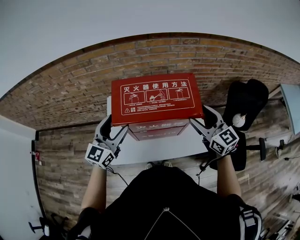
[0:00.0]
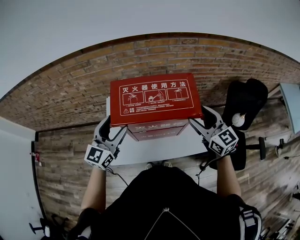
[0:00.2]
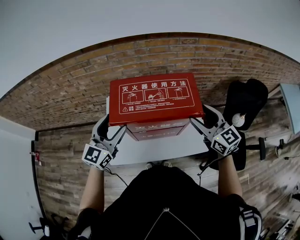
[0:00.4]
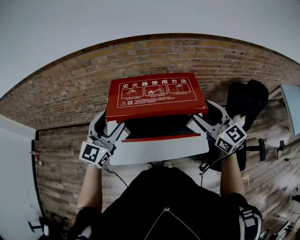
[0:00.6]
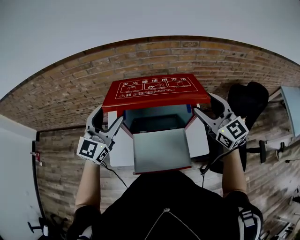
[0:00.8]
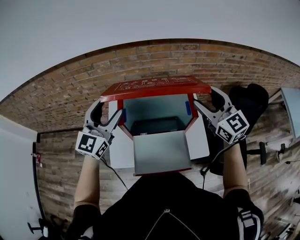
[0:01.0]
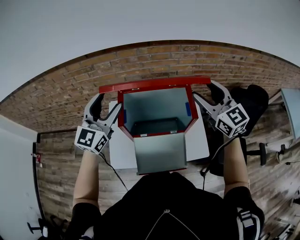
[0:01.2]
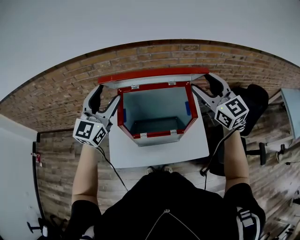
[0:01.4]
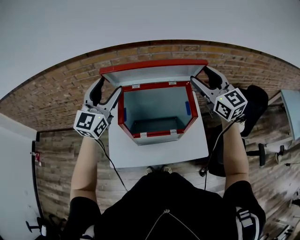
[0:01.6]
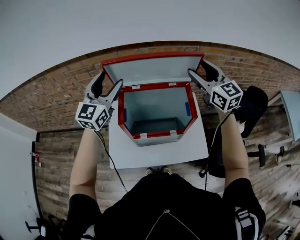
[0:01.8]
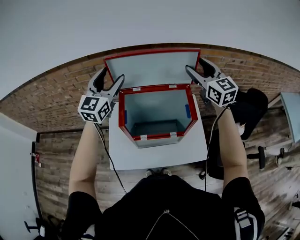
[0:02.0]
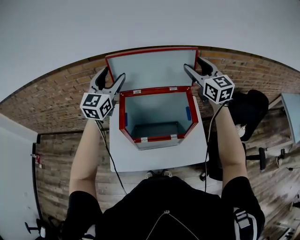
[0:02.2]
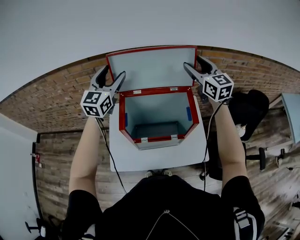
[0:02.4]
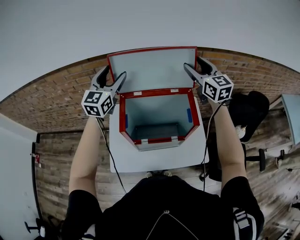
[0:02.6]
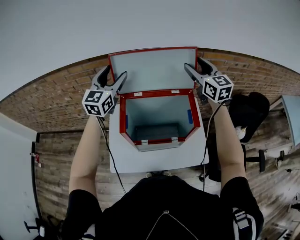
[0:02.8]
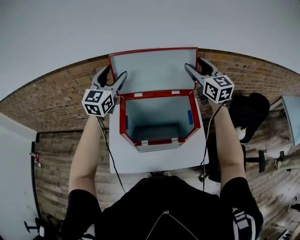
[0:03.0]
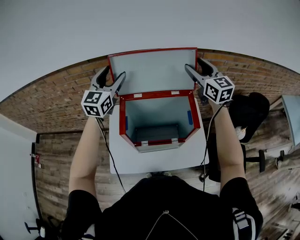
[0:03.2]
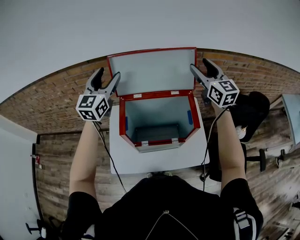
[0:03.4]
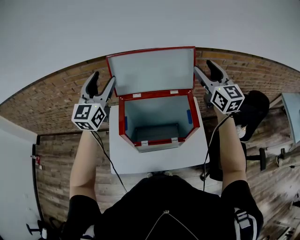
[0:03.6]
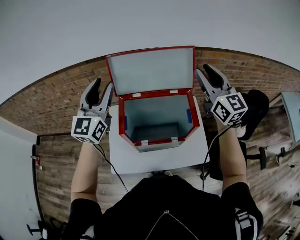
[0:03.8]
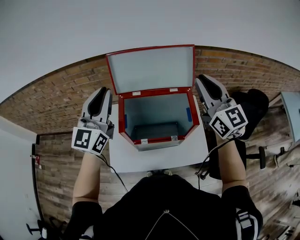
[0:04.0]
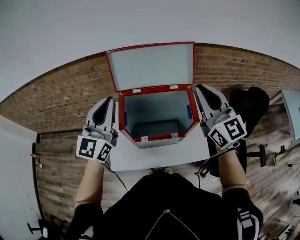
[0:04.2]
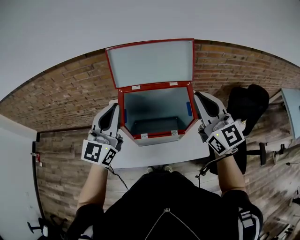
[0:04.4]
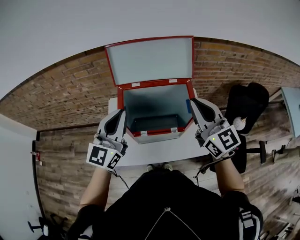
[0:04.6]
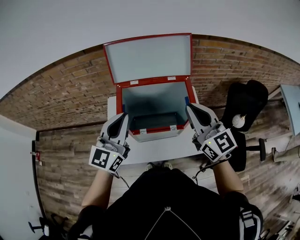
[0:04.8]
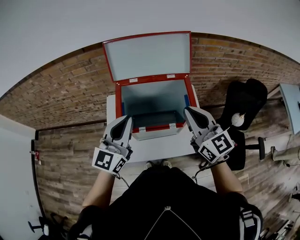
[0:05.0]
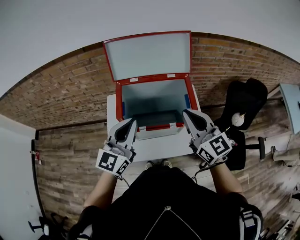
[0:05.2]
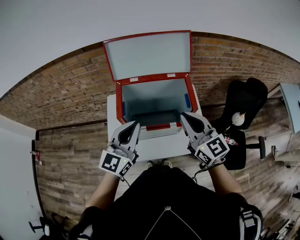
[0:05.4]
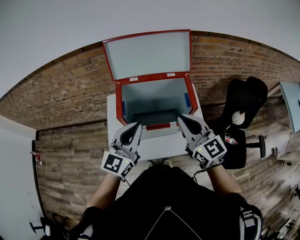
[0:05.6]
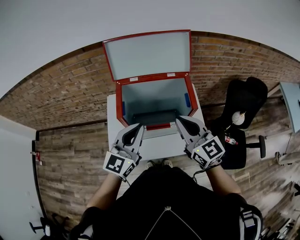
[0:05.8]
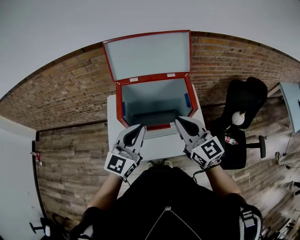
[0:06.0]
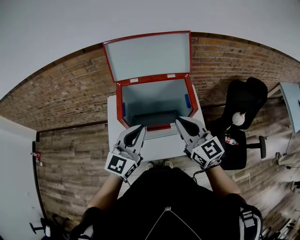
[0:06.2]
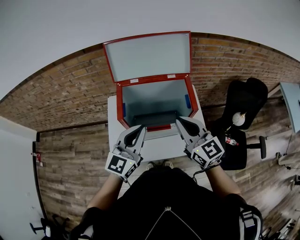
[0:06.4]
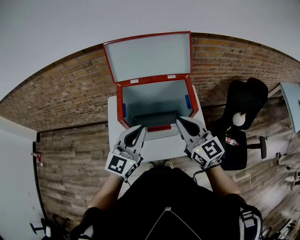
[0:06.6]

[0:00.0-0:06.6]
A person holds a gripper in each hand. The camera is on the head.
0:00.0 to 0:01.6: Both grippers travel together upward and forward, some 20 cm.
0:01.6 to 0:03.2: Both grippers travel together forward, some 10 cm.
0:03.2 to 0:05.0: The grippers both shift backward by approximately 25 cm. The right gripper closes its fingers. Meanwhile the left gripper closes its fingers.
0:05.0 to 0:06.6: The left gripper ends up about 5 cm from where it was, while the right gripper moves about 5 cm.

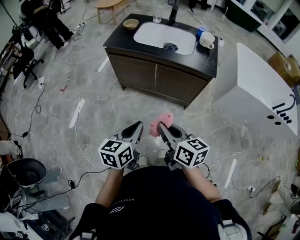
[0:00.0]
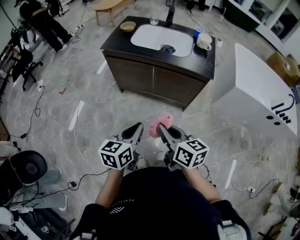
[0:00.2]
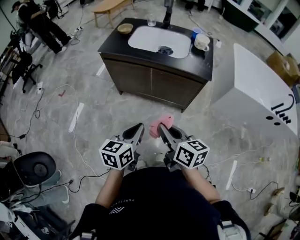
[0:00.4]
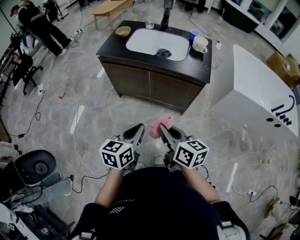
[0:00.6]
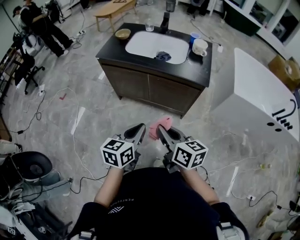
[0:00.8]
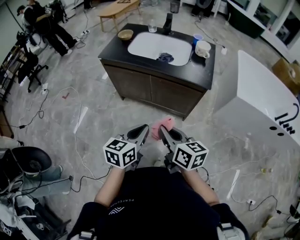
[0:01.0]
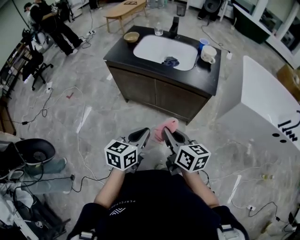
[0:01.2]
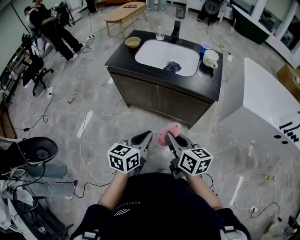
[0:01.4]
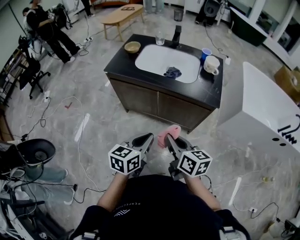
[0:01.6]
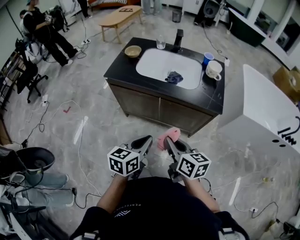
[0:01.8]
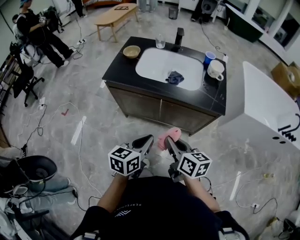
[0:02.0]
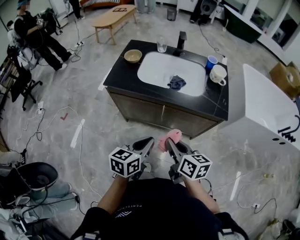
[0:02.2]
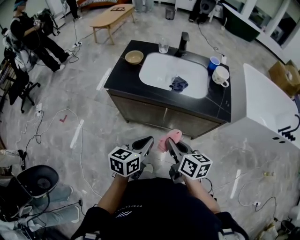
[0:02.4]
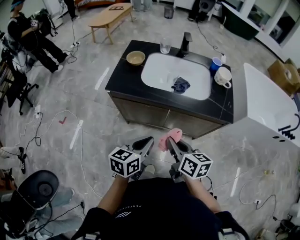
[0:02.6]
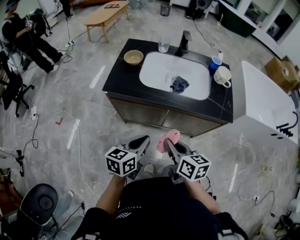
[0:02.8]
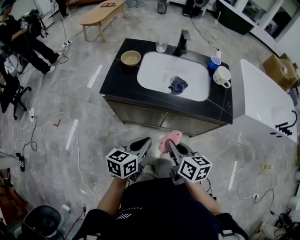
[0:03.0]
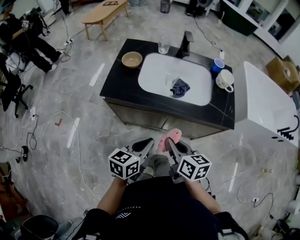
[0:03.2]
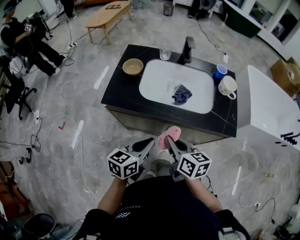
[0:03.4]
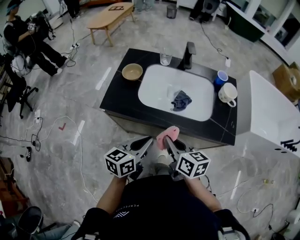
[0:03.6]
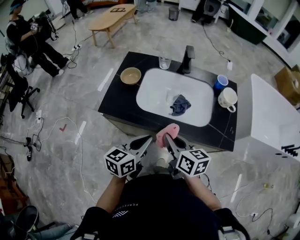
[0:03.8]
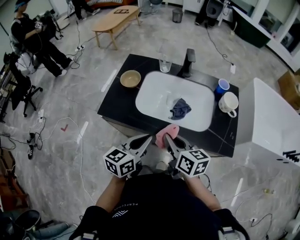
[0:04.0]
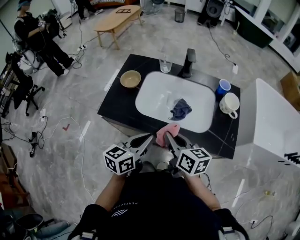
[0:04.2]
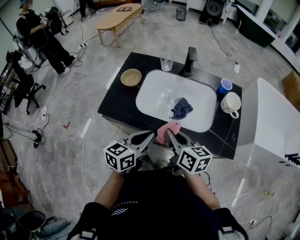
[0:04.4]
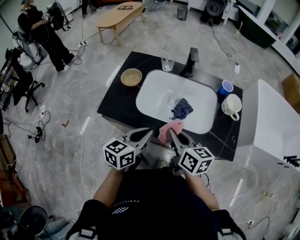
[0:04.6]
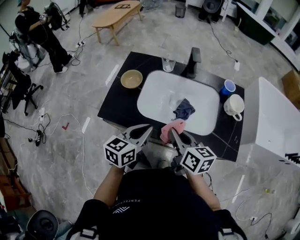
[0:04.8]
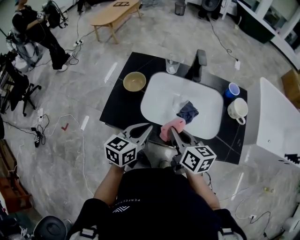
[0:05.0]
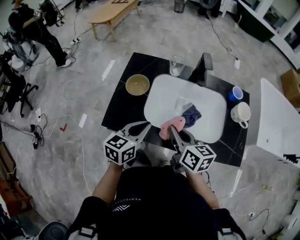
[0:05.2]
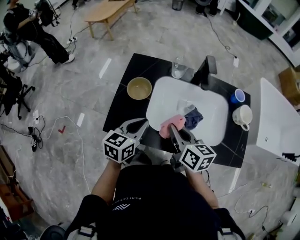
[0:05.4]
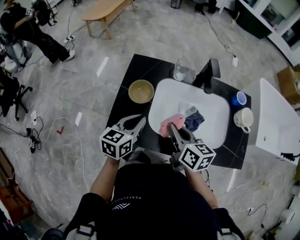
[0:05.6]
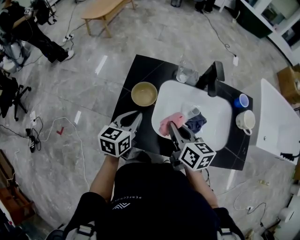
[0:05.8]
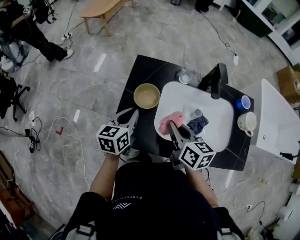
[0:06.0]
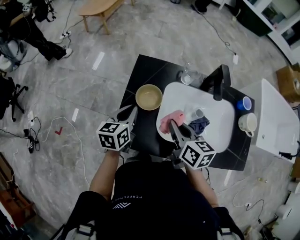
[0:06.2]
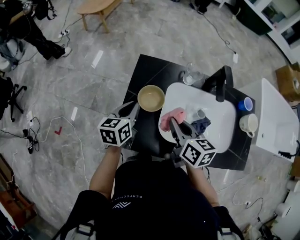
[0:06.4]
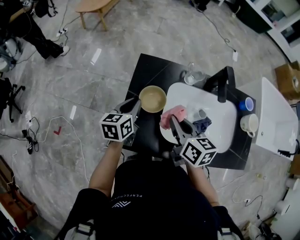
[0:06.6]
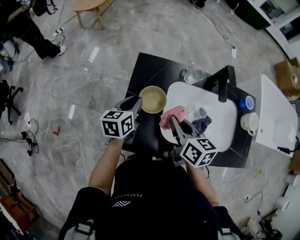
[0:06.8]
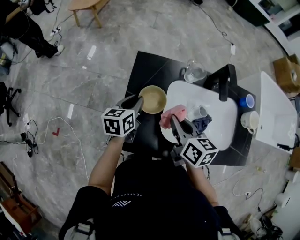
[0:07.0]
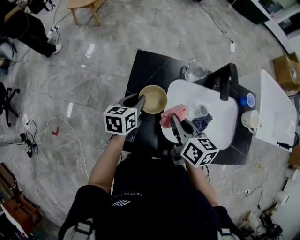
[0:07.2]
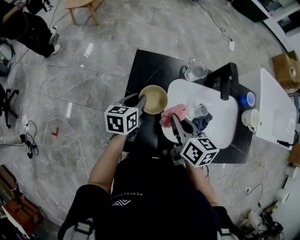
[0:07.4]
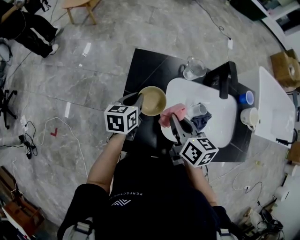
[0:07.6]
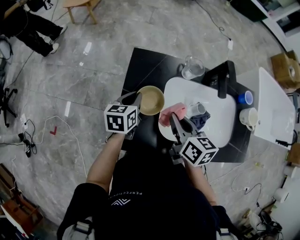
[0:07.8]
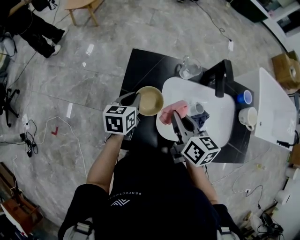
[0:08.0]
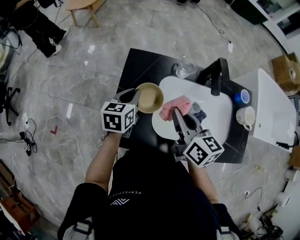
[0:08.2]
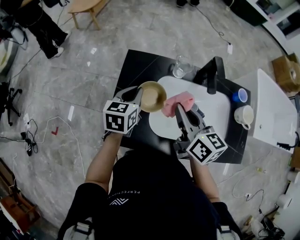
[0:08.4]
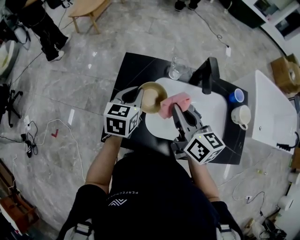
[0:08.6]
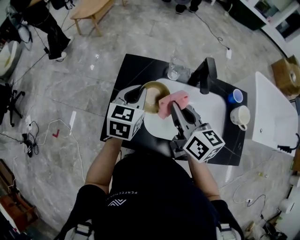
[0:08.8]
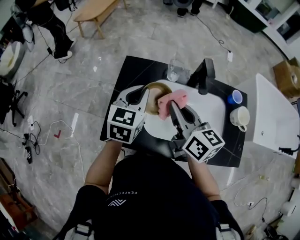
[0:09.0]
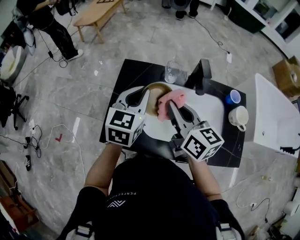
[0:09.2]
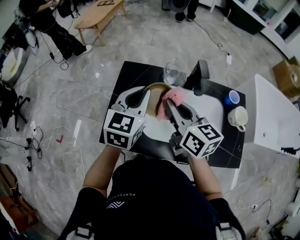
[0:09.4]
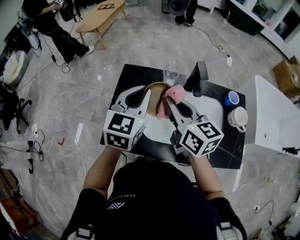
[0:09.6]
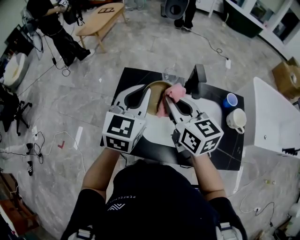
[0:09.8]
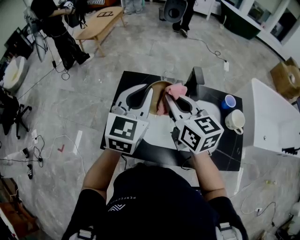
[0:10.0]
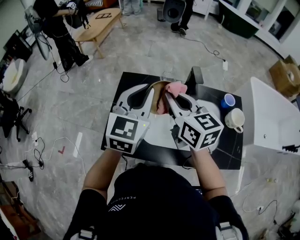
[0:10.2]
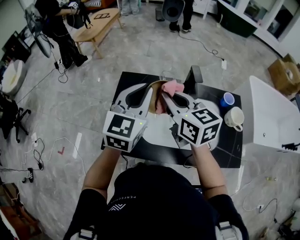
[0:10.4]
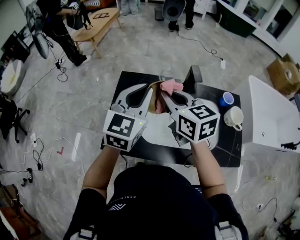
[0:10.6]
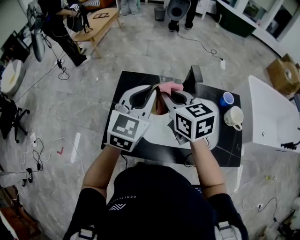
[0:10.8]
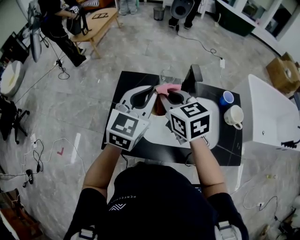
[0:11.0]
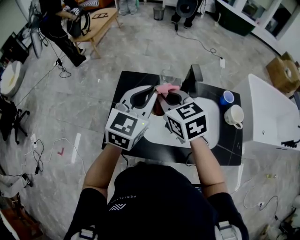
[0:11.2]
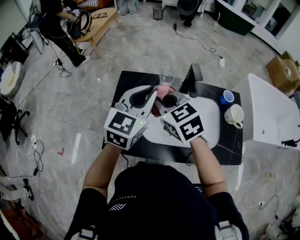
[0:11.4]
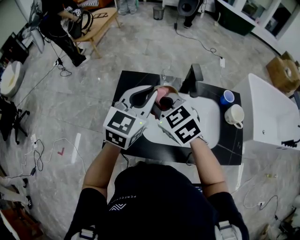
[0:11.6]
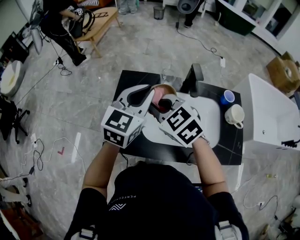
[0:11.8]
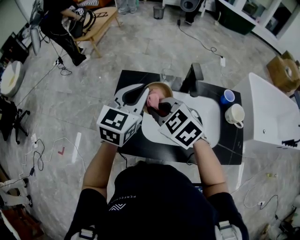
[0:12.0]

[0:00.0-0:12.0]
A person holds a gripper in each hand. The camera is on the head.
0:00.0 to 0:01.6: Both grippers move forward and to the right, some 15 cm.
0:01.6 to 0:03.0: Both grippers move forward and to the left, about 20 cm.
0:03.0 to 0:04.4: Both grippers travel together forward, roughly 20 cm.
0:04.4 to 0:06.0: The two grippers go some 25 cm forward and to the left.
0:06.0 to 0:07.6: The right gripper travels forward by approximately 5 cm. The left gripper shifts about 10 cm forward and downward.
0:07.6 to 0:09.0: Both grippers travel together upward and to the right, some 15 cm. The left gripper changes its angle by approximately 30 degrees. The right gripper turns by about 20 degrees.
0:09.0 to 0:10.4: The right gripper travels upward by some 5 cm. Meanwhile the left gripper moves upward, approximately 10 cm.
0:10.4 to 0:12.0: The right gripper is displaced downward and to the left by about 10 cm, and swivels roughly 40 degrees.

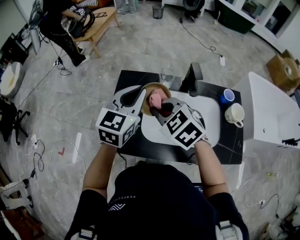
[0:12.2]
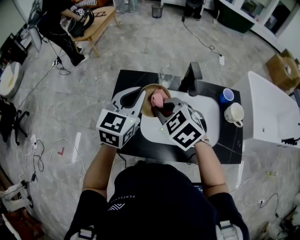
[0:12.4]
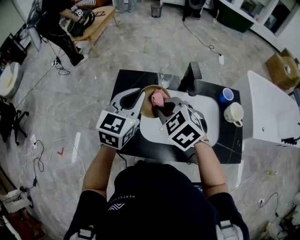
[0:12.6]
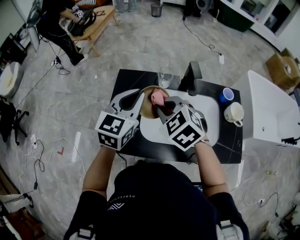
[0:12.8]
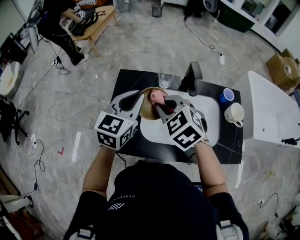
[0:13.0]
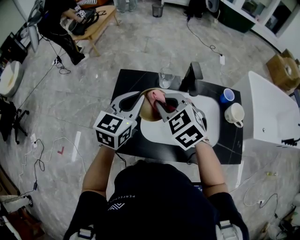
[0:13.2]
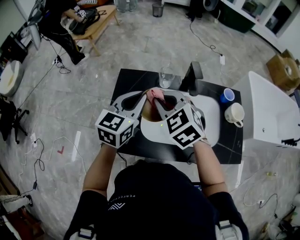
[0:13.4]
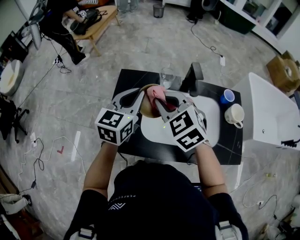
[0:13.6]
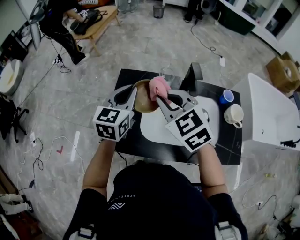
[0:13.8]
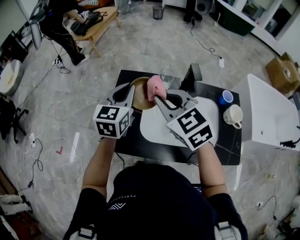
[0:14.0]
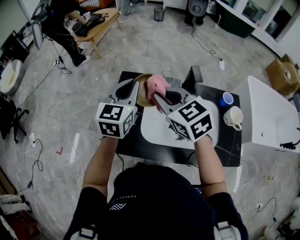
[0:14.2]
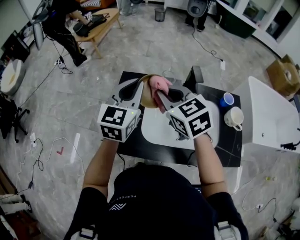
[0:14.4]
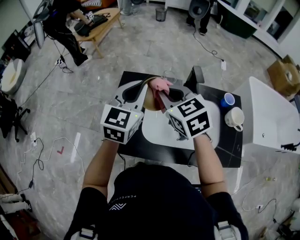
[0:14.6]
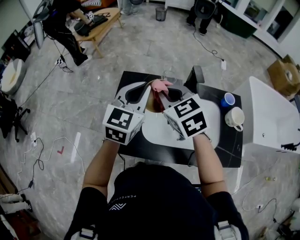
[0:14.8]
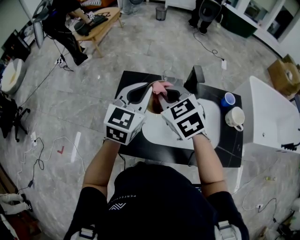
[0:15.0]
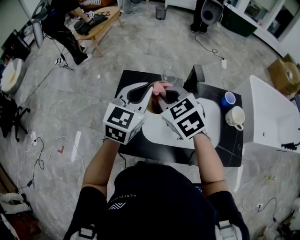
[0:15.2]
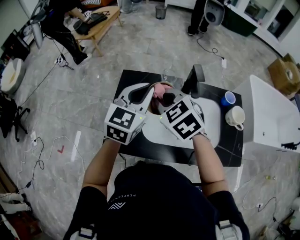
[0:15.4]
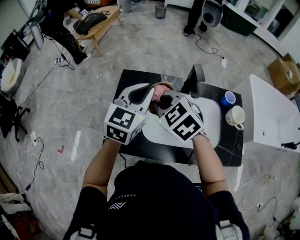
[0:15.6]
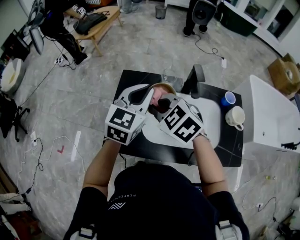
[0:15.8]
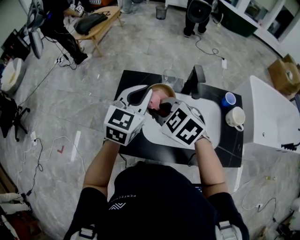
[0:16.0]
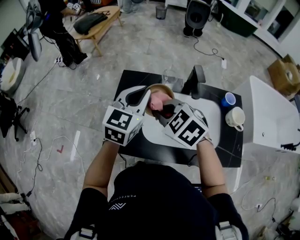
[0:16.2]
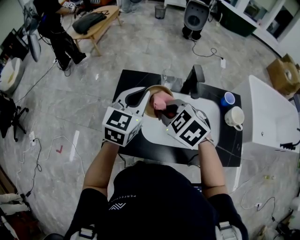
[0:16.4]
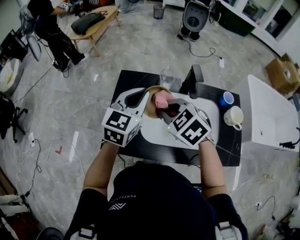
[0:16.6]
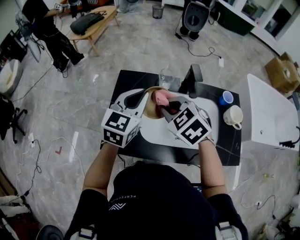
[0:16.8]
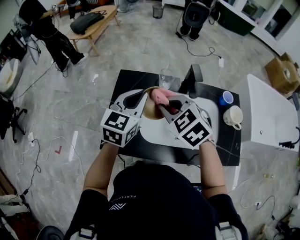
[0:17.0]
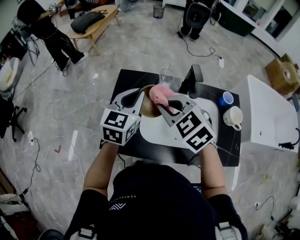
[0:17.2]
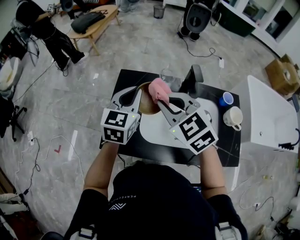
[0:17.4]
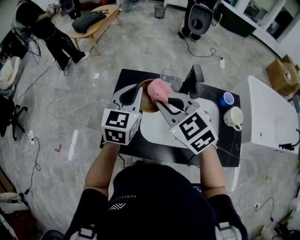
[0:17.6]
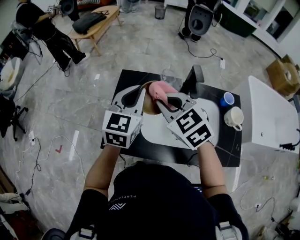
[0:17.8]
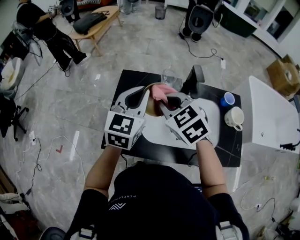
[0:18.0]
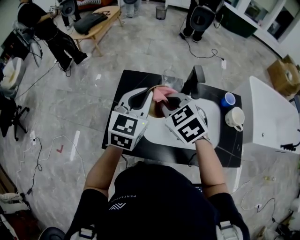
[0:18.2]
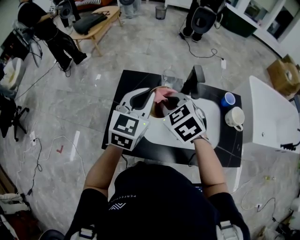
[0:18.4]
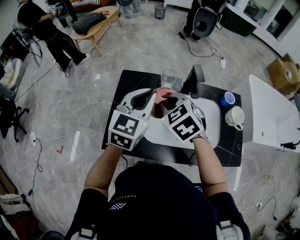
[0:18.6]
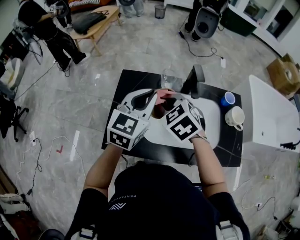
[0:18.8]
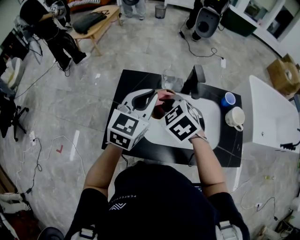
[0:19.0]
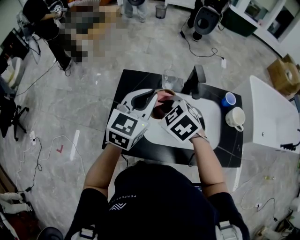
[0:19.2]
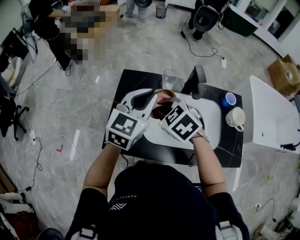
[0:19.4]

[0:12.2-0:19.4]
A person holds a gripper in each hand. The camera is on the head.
0:12.2 to 0:13.6: The grippers stay close to where they were, moving slightly.
0:13.6 to 0:15.0: There are only small adjustments of the grippers.
0:15.0 to 0:16.6: The right gripper moves some 5 cm.
0:18.0 to 0:19.4: The right gripper changes place by some 5 cm.
